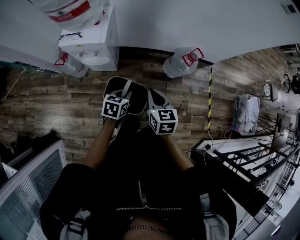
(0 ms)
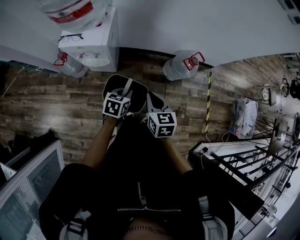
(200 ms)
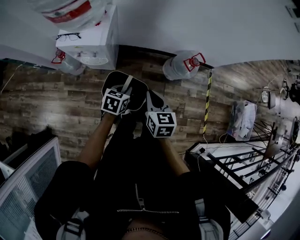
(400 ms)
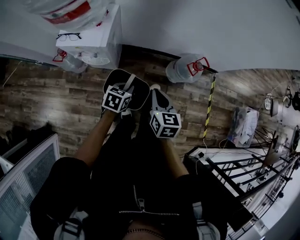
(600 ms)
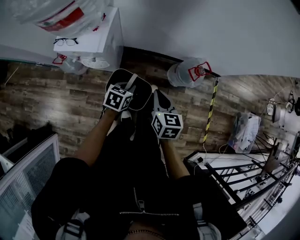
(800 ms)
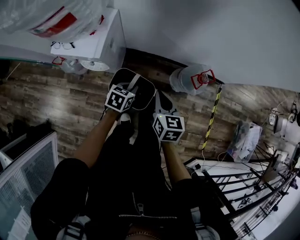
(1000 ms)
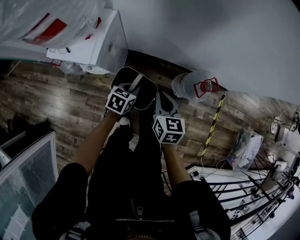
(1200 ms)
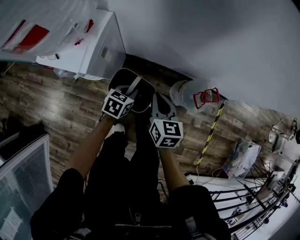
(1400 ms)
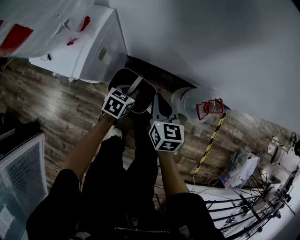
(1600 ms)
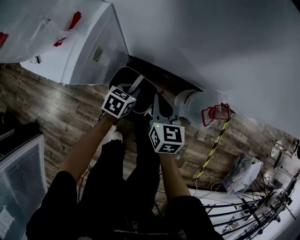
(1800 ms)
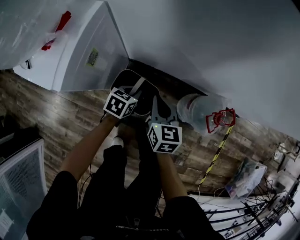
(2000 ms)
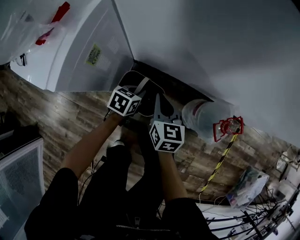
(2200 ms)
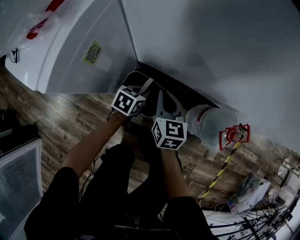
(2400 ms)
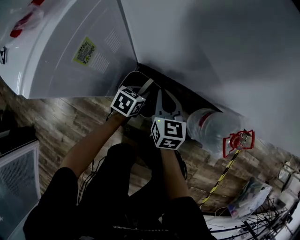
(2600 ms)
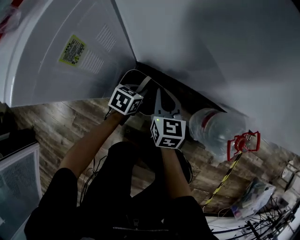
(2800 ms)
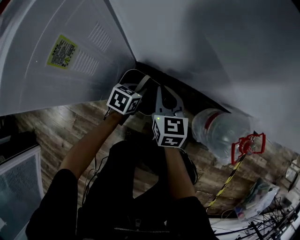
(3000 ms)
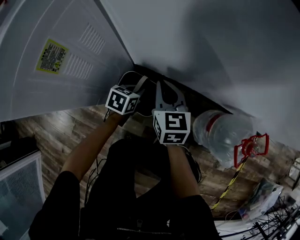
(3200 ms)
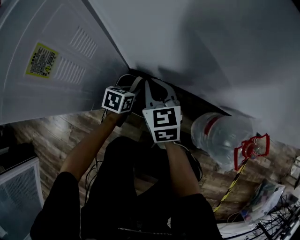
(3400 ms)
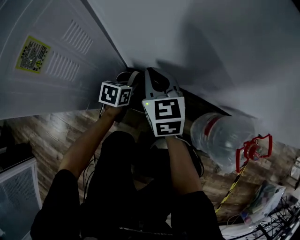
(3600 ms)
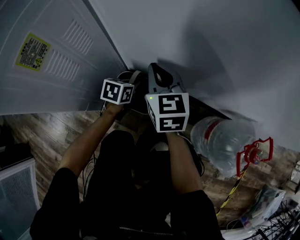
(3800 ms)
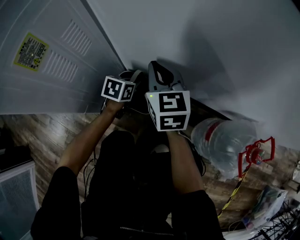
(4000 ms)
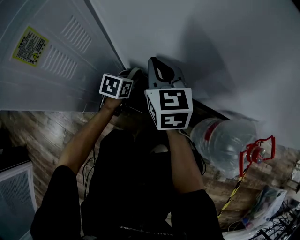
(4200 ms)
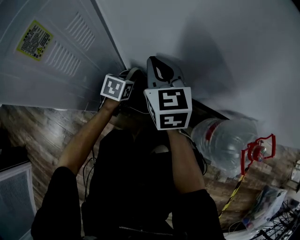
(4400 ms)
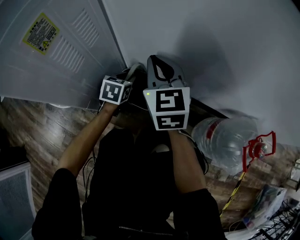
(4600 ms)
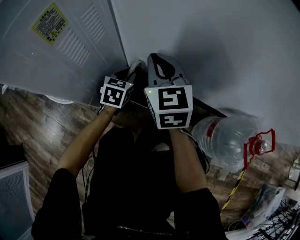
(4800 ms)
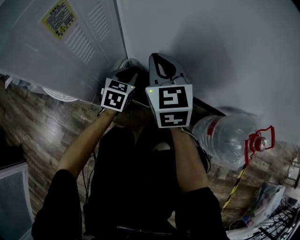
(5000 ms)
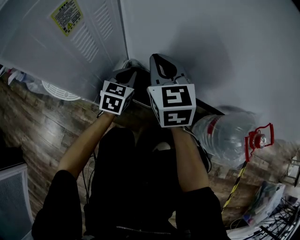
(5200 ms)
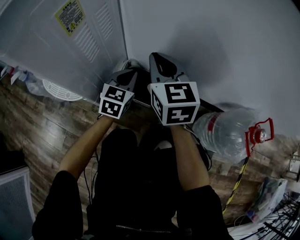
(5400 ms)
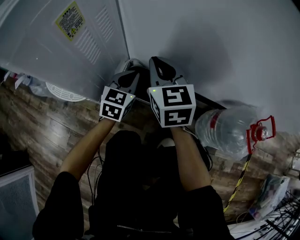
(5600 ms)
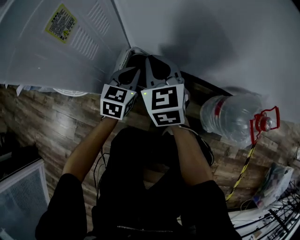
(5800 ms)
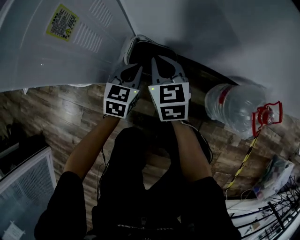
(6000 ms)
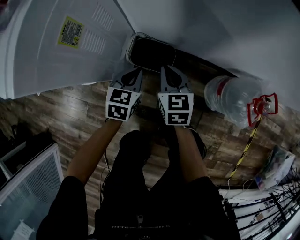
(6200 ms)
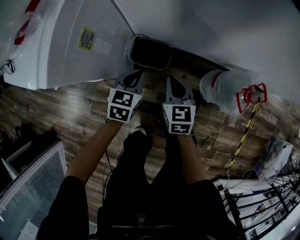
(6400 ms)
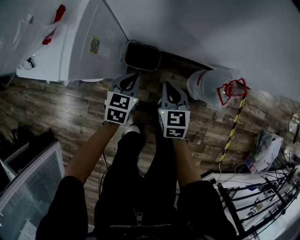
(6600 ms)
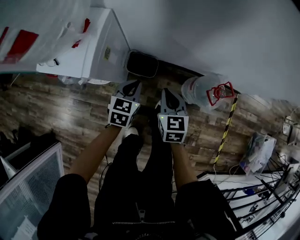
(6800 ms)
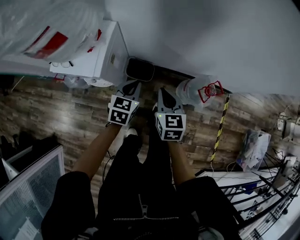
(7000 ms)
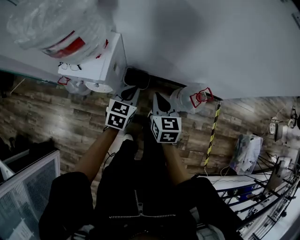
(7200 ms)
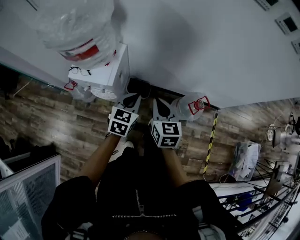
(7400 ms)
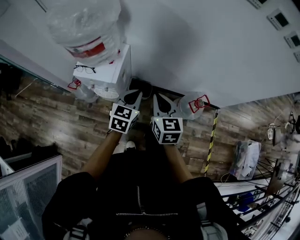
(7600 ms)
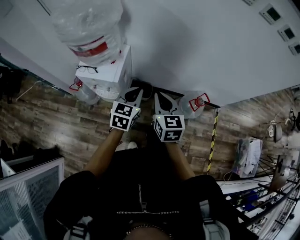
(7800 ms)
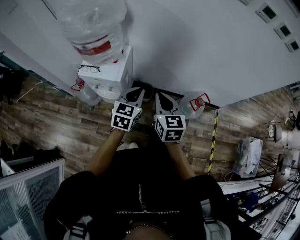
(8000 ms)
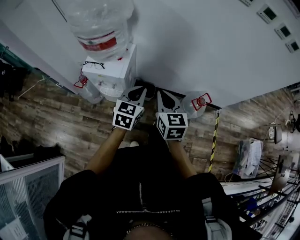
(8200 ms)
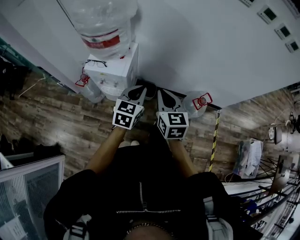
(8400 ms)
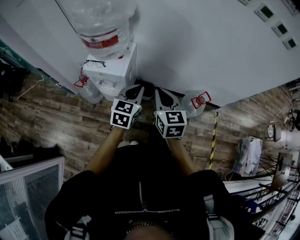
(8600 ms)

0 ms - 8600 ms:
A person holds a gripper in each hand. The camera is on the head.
0 ms - 1400 ms: The grippers both shift forward and downward by approximately 30 cm.
1400 ms - 2800 ms: The grippers both shift downward and forward by about 30 cm.
2800 ms - 4400 ms: The left gripper is displaced forward and downward by approximately 10 cm; the right gripper is displaced forward by roughly 10 cm.
4400 ms - 5800 ms: The left gripper goes about 15 cm upward and backward, and rotates some 20 degrees; the right gripper heads backward, covering some 5 cm.
5800 ms - 7200 ms: The left gripper shifts some 40 cm upward. Meanwhile the right gripper heads upward and backward, covering about 40 cm, and turns by roughly 30 degrees.
7200 ms - 8600 ms: Both grippers travel together upward, backward and to the left, about 20 cm.

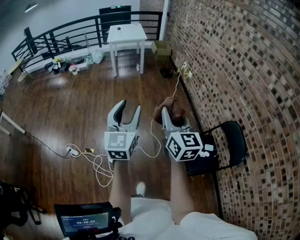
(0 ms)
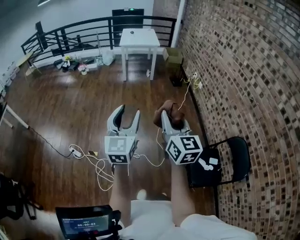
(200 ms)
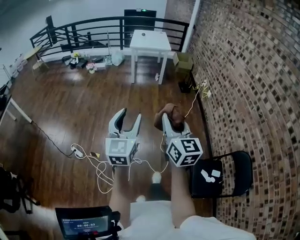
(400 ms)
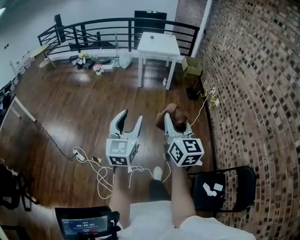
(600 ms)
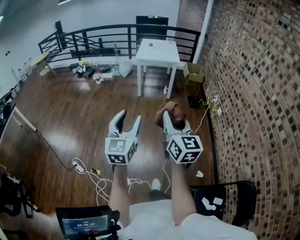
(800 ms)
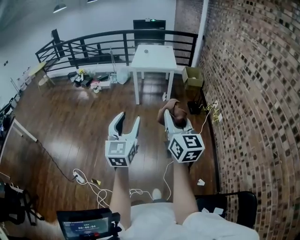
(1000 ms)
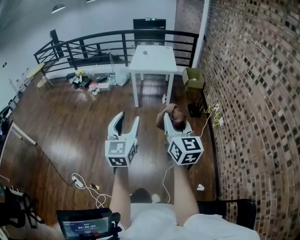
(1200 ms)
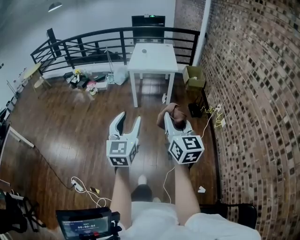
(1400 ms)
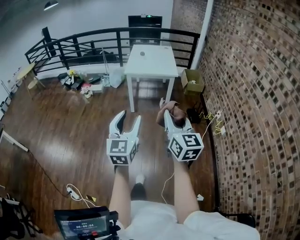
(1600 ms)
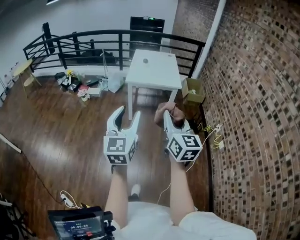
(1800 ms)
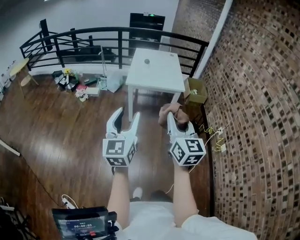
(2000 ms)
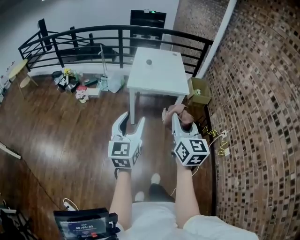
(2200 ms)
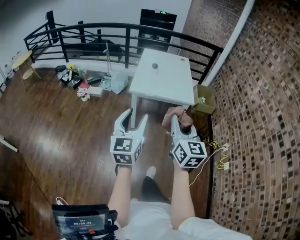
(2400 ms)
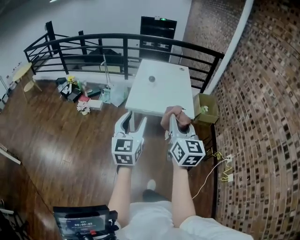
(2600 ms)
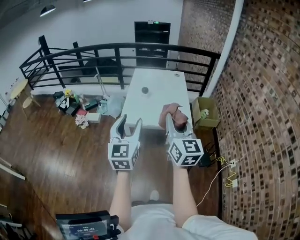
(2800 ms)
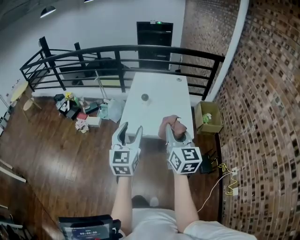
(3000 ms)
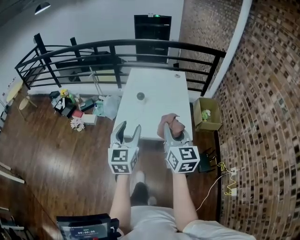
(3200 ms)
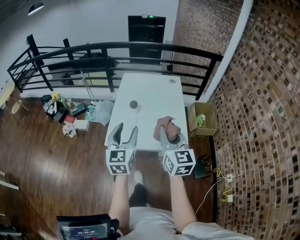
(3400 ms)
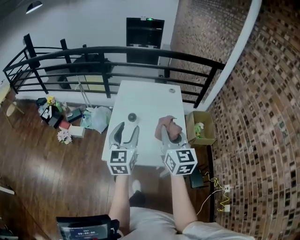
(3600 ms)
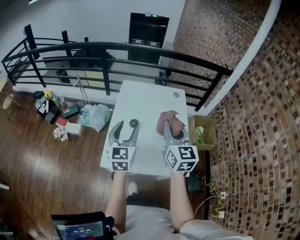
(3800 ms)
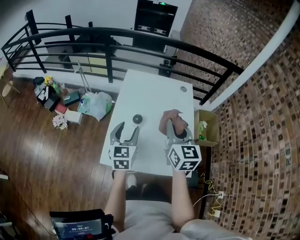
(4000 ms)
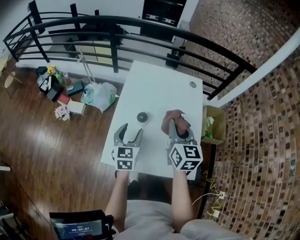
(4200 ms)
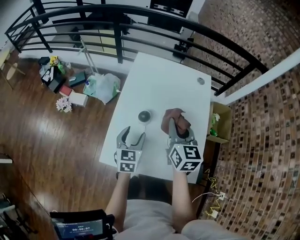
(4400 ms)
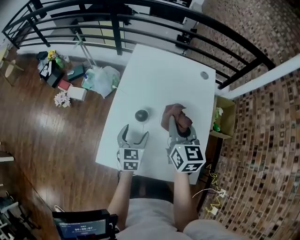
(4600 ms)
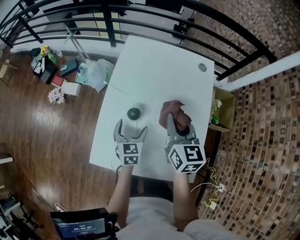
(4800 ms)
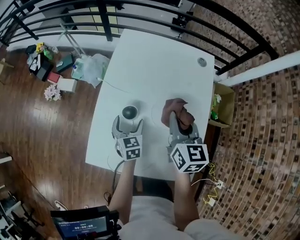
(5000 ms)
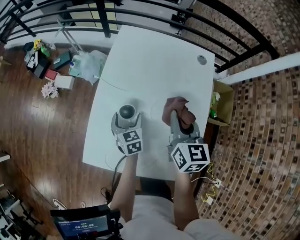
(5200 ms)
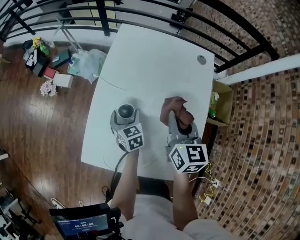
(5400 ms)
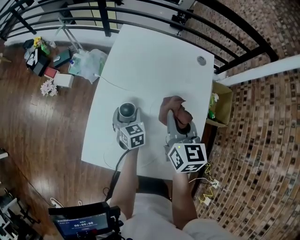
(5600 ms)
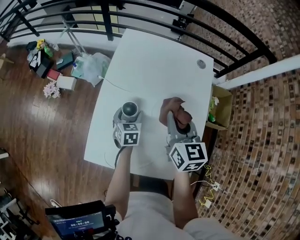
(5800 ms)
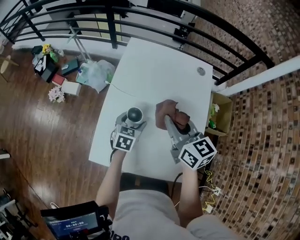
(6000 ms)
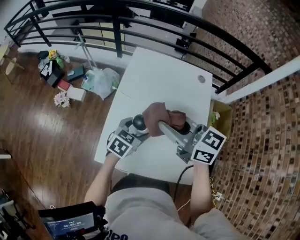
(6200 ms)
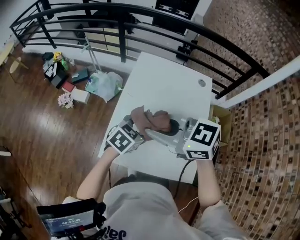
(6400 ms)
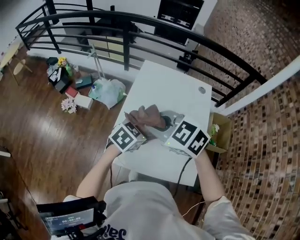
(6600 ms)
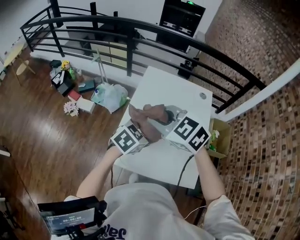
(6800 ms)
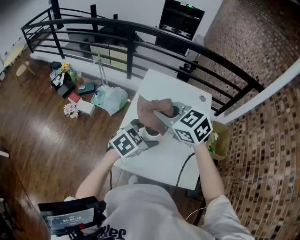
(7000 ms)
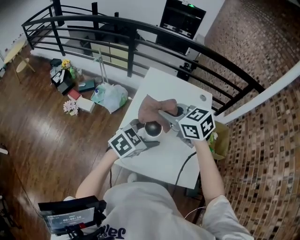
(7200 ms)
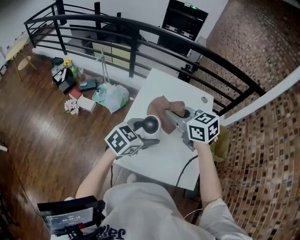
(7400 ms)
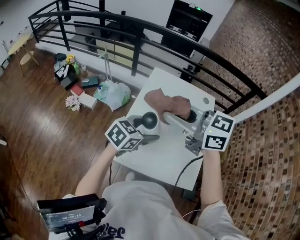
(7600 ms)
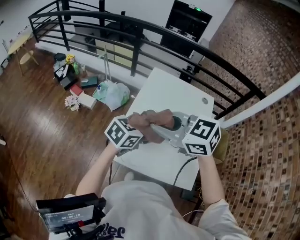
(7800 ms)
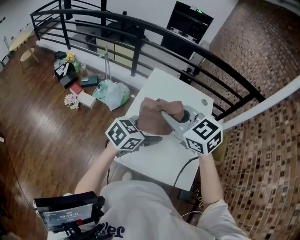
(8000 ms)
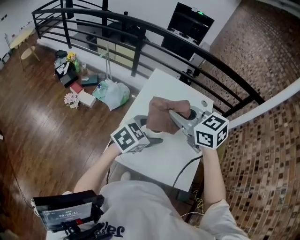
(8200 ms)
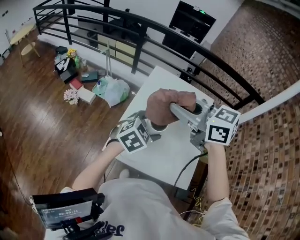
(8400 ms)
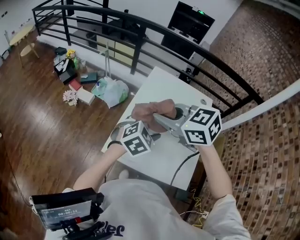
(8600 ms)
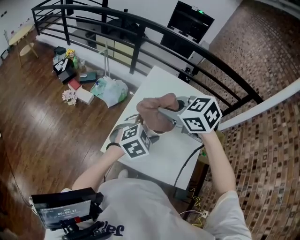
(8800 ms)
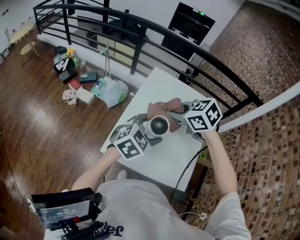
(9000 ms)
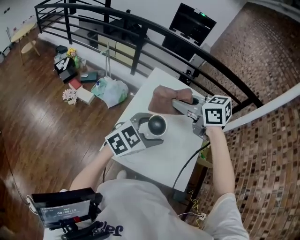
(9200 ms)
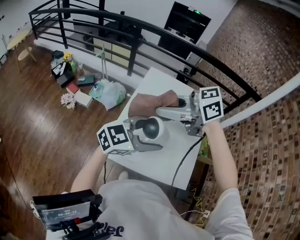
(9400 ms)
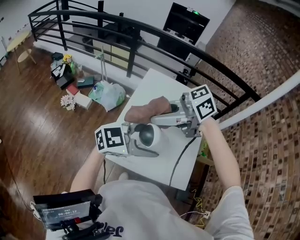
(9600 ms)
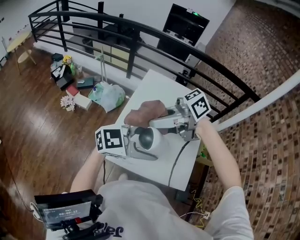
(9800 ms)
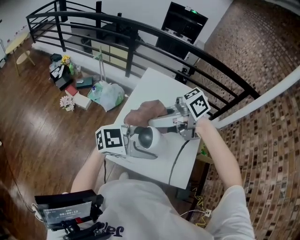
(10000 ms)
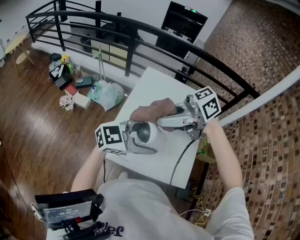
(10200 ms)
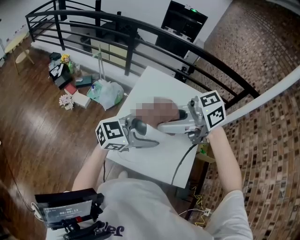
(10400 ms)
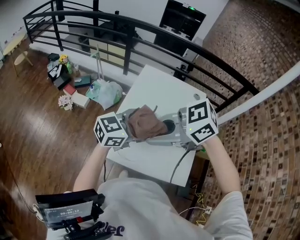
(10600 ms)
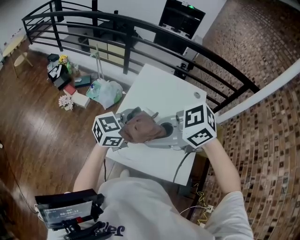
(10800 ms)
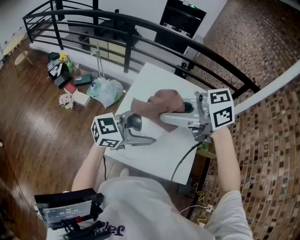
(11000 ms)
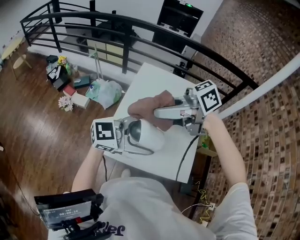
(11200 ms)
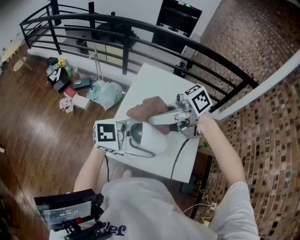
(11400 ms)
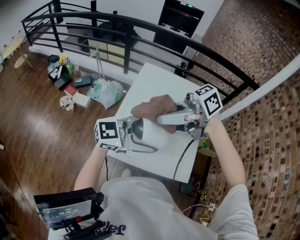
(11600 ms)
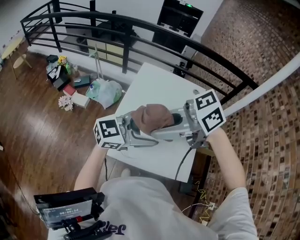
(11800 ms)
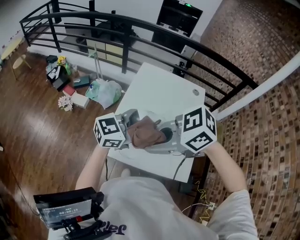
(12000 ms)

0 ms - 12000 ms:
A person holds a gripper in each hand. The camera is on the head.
0 ms - 1600 ms: Both grippers are carried forward, about 70 cm.
1600 ms - 3000 ms: Both grippers are carried forward, about 60 cm.
3000 ms - 4400 ms: The right gripper travels forward by roughly 40 cm; the left gripper goes approximately 50 cm forward and downward, and turns by approximately 30 degrees.
4400 ms - 6000 ms: The left gripper goes some 10 cm downward, forward and to the right. The right gripper swivels approximately 20 degrees.
6000 ms - 7600 ms: The grippers both shift upward by roughly 20 cm. The left gripper changes its angle by roughly 30 degrees. The right gripper rotates about 40 degrees.
7600 ms - 9000 ms: The left gripper rotates some 20 degrees. Meanwhile the right gripper moves up and down over approximately 10 cm, changing direction 2 times, and tilts its fingers approximately 40 degrees downward.
9000 ms - 10400 ms: The left gripper travels upward by about 5 cm, and rotates about 40 degrees; the right gripper goes up and down, about 10 cm each way, reversing 2 times, and points its fingers about 30 degrees further upward.
10400 ms - 12000 ms: The right gripper moves up and down over approximately 5 cm, changing direction 2 times.

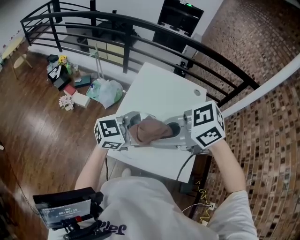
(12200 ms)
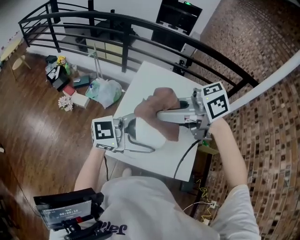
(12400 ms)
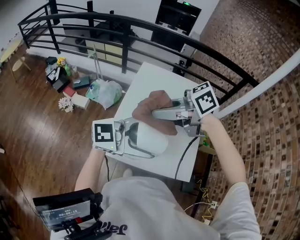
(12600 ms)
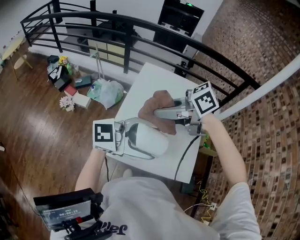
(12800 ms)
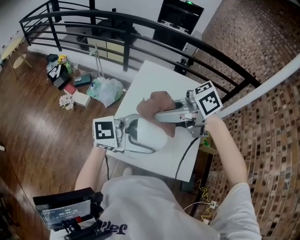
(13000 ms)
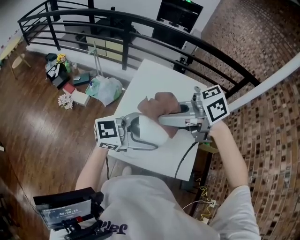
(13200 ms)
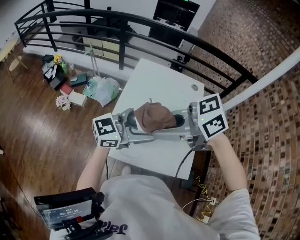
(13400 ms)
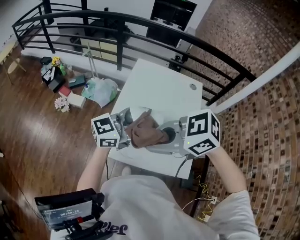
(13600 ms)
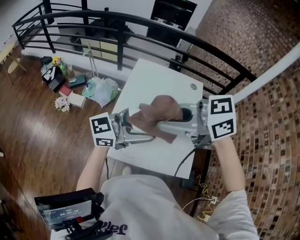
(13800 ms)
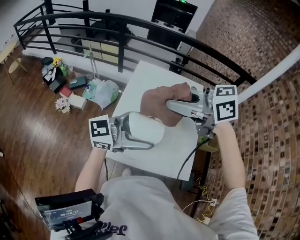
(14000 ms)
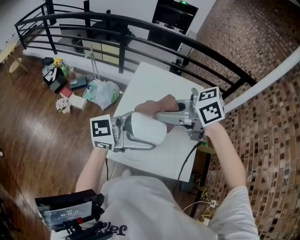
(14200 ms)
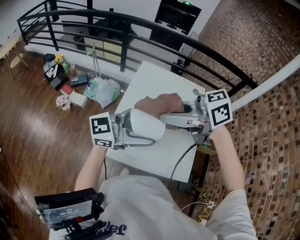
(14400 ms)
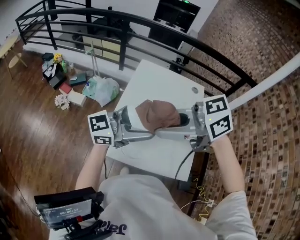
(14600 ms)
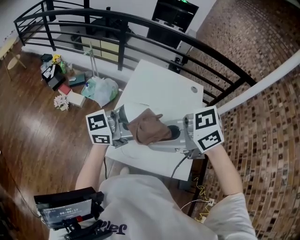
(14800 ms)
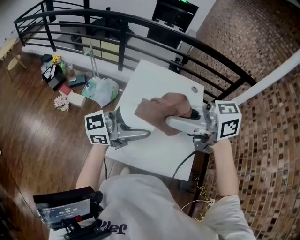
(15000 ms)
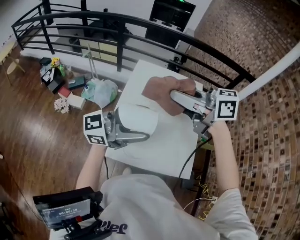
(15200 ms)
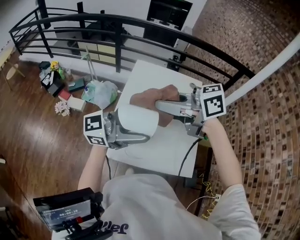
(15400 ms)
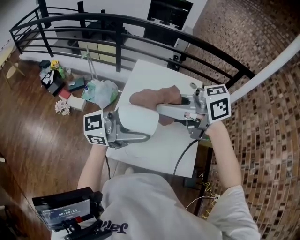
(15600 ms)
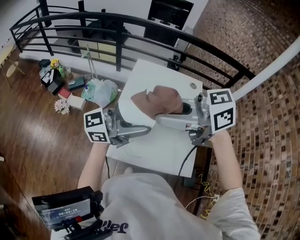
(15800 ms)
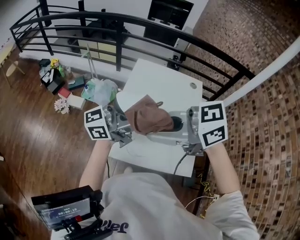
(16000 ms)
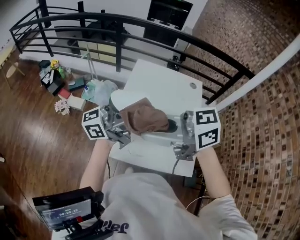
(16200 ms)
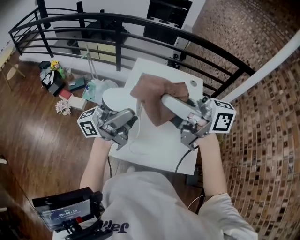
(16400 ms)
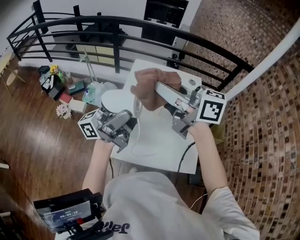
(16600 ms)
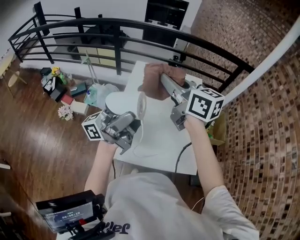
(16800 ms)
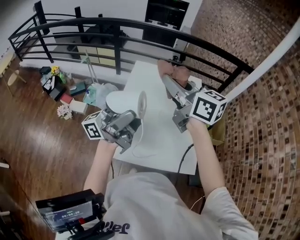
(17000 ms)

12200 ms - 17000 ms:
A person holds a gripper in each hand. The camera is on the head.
13800 ms - 15400 ms: The right gripper changes place by about 5 cm.
15400 ms - 17000 ms: The right gripper shifts by about 10 cm, and changes its angle by some 40 degrees, while the left gripper ends up some 5 cm from where it was, and turns by roughly 40 degrees.
